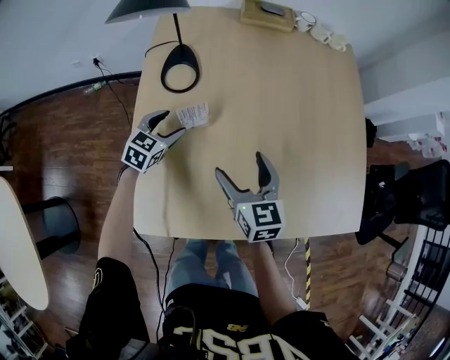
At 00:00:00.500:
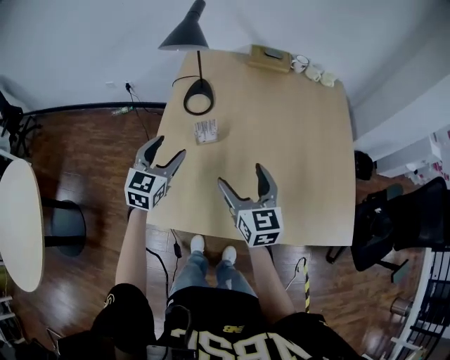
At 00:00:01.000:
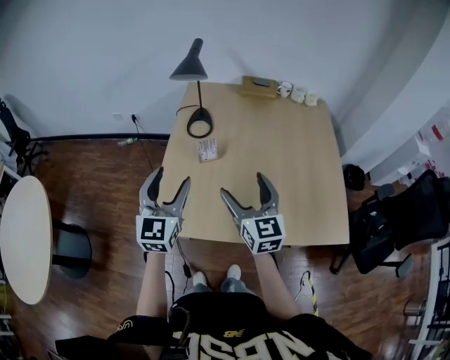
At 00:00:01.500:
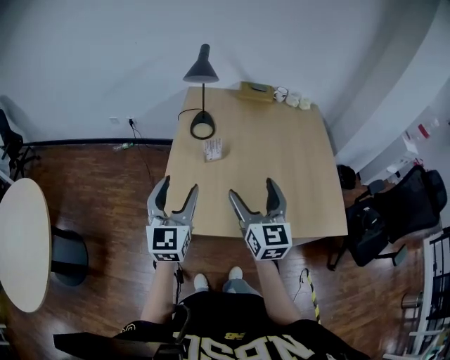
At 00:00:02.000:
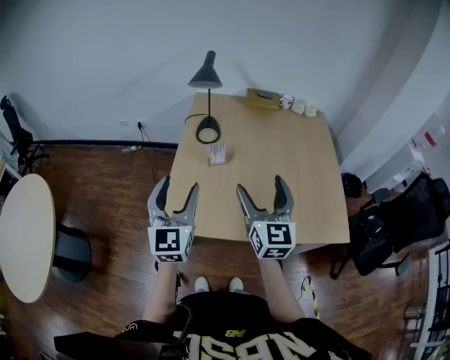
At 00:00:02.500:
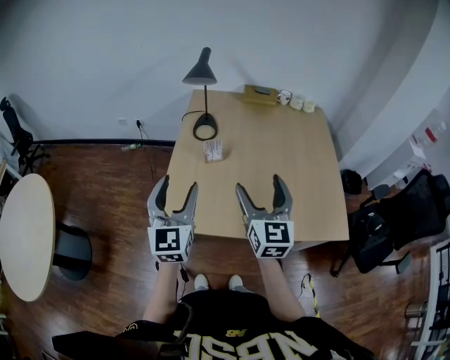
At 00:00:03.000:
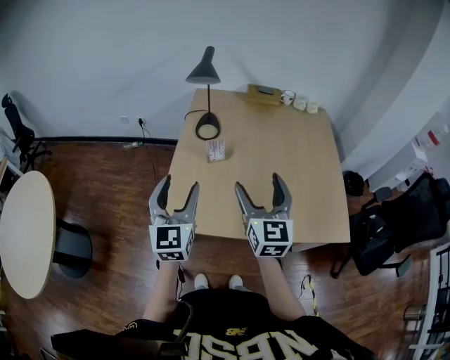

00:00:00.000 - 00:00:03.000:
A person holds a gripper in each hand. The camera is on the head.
00:00:00.000 - 00:00:01.500: The right gripper moves upward and backward, some 30 cm, and rotates approximately 20 degrees, while the left gripper moves backward and upward, approximately 50 cm, and angles its fingers upward, by some 40 degrees.
00:00:01.500 - 00:00:03.000: The grippers move only a little.

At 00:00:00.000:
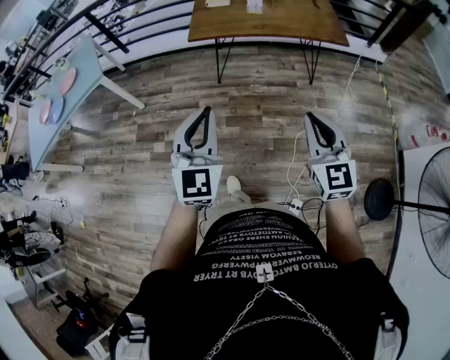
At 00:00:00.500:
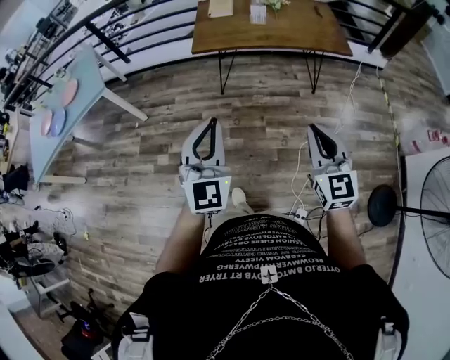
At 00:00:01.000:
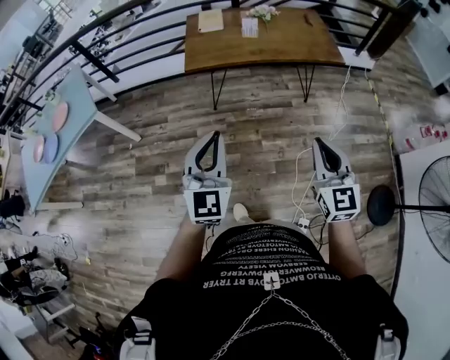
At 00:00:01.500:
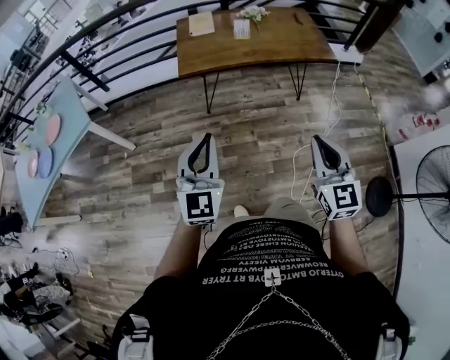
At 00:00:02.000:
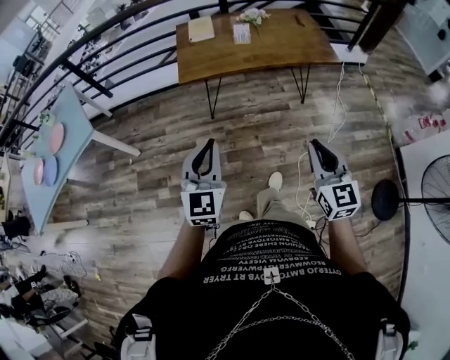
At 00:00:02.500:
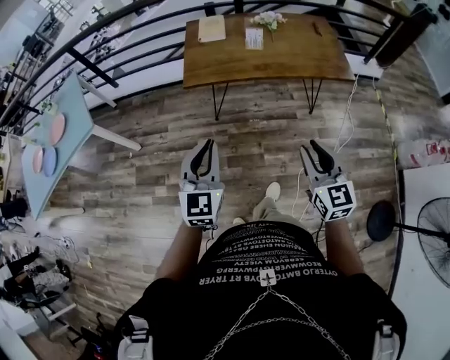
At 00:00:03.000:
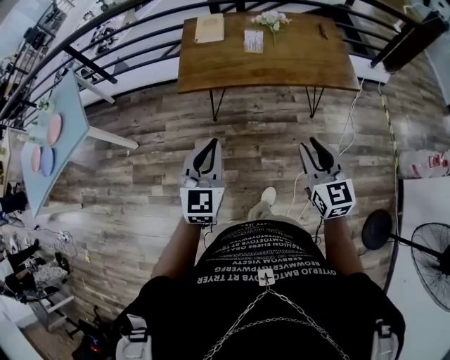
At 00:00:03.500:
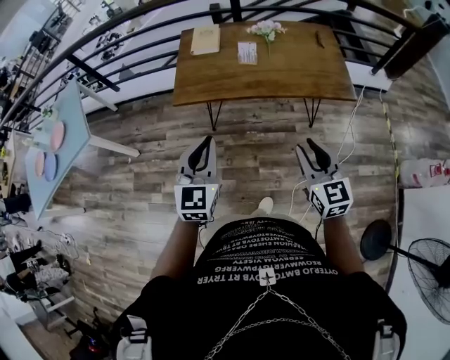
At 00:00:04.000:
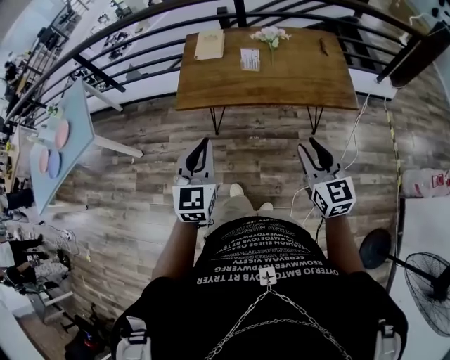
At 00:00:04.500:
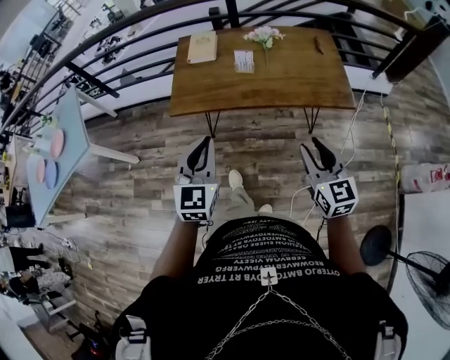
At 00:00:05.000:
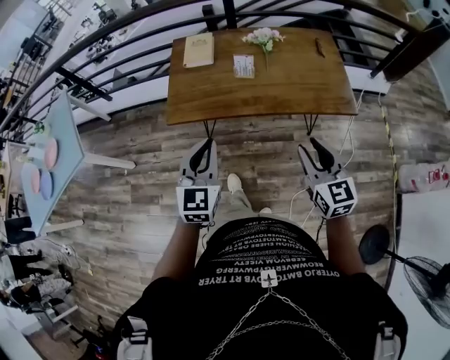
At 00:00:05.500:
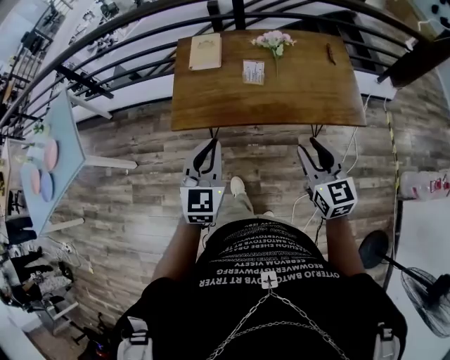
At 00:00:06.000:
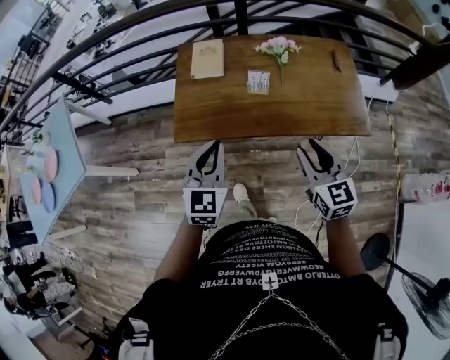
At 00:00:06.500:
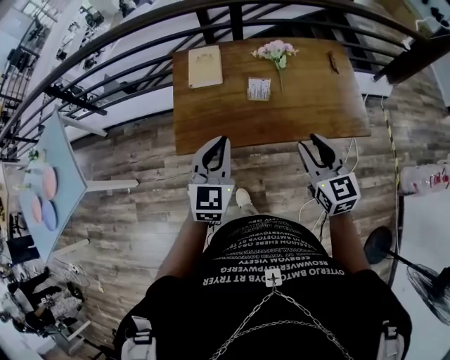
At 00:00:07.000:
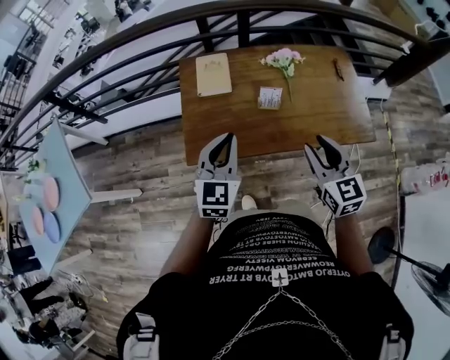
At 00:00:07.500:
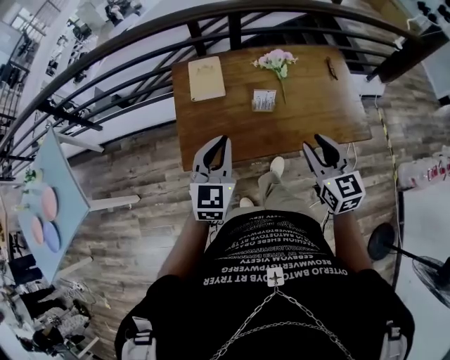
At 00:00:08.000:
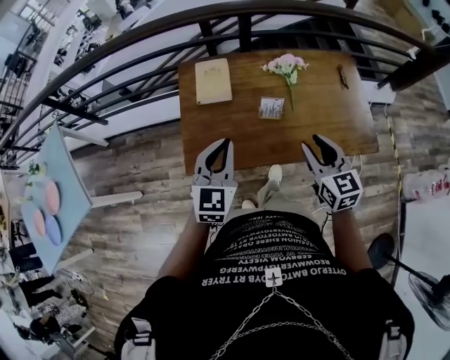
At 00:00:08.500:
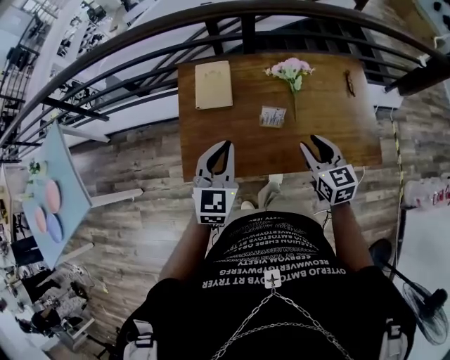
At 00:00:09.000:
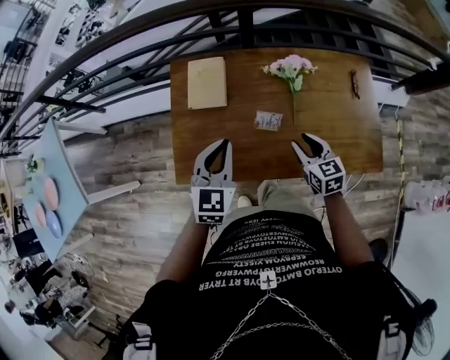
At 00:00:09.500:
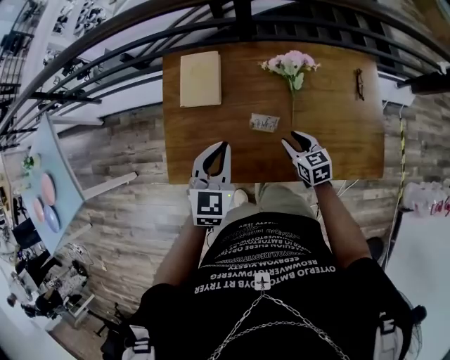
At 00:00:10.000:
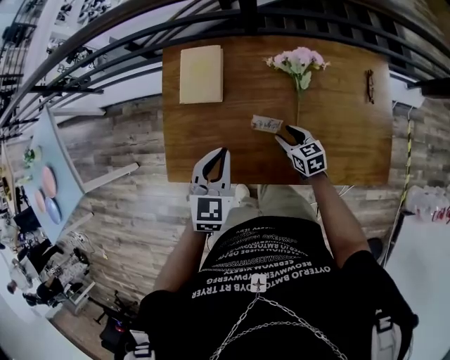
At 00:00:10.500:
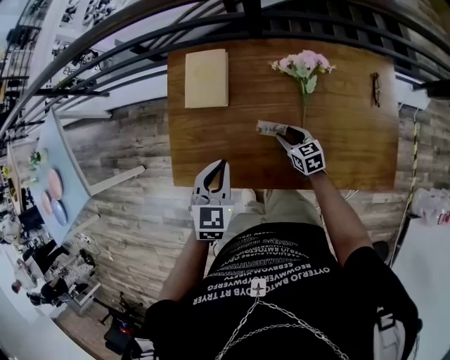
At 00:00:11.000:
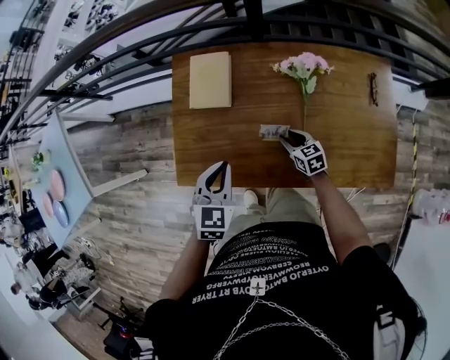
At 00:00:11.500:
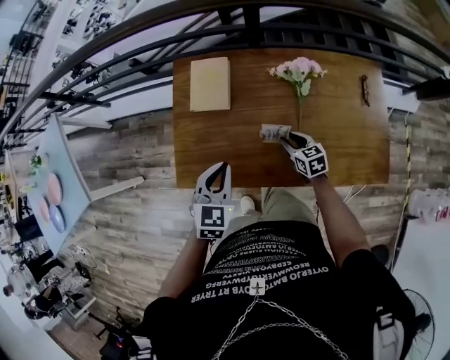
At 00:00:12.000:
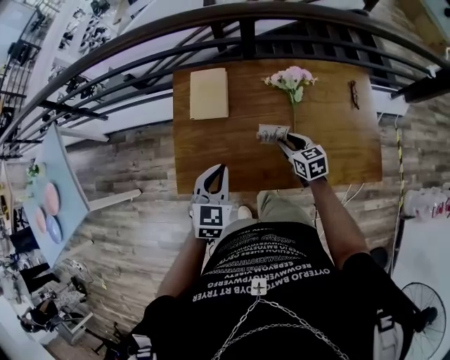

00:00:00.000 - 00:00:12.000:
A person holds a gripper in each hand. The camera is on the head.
00:00:00.000 - 00:00:02.000: The two grippers go roughly 15 cm forward.
00:00:02.000 - 00:00:04.000: Both grippers travel together forward and to the right, approximately 25 cm. The right gripper opens its fingers.
00:00:04.000 - 00:00:06.000: Both grippers travel together forward, about 20 cm.
00:00:06.000 - 00:00:08.000: The two grippers go approximately 15 cm forward.
00:00:08.000 - 00:00:10.000: The left gripper heads downward, forward and to the right, covering about 20 cm; the right gripper heads downward and forward, covering about 35 cm, and swivels roughly 30 degrees.
00:00:10.000 - 00:00:12.000: The left gripper heads to the left, covering approximately 5 cm. Meanwhile the right gripper shifts some 10 cm upward.

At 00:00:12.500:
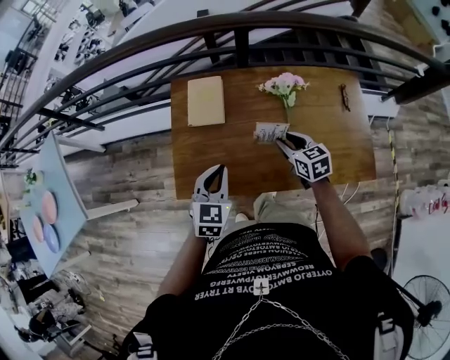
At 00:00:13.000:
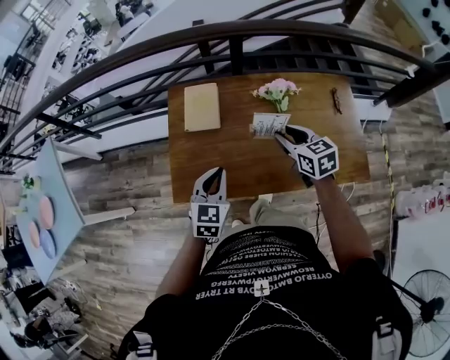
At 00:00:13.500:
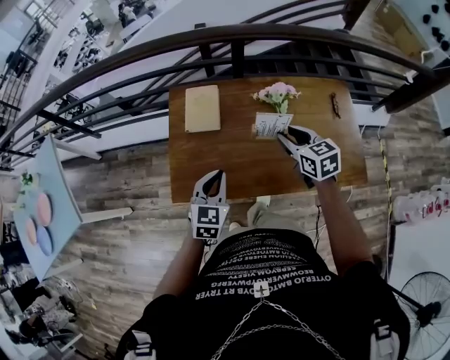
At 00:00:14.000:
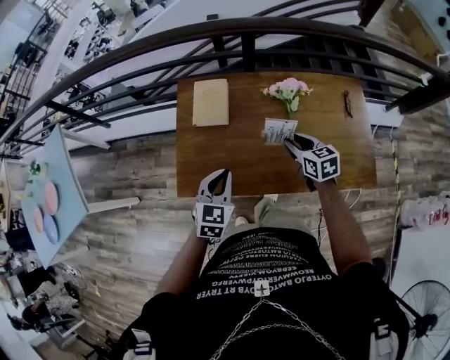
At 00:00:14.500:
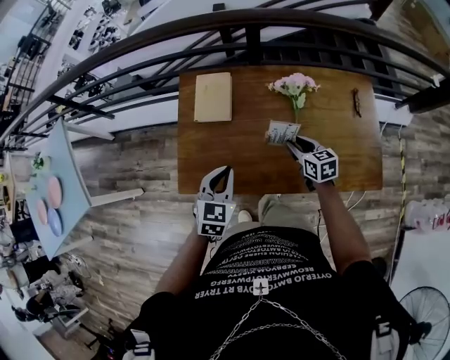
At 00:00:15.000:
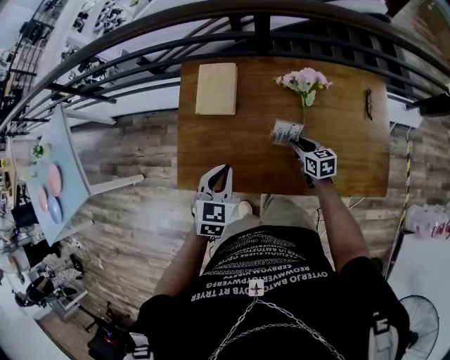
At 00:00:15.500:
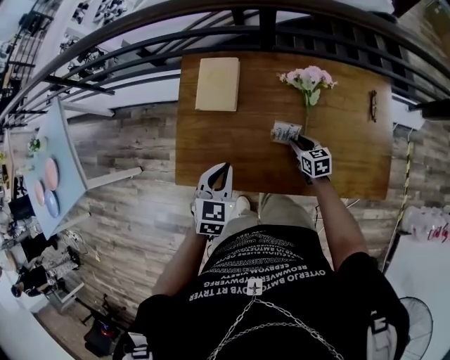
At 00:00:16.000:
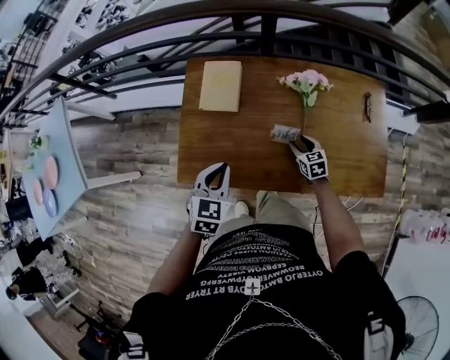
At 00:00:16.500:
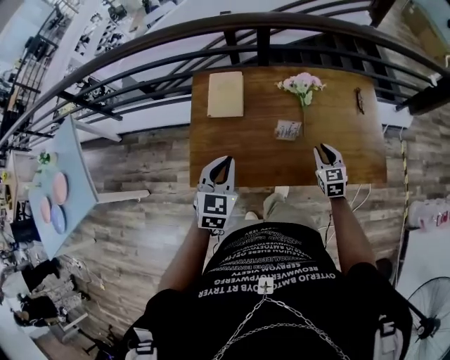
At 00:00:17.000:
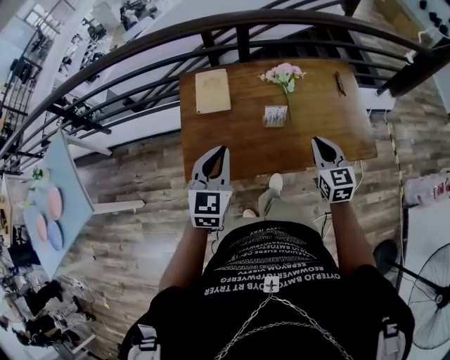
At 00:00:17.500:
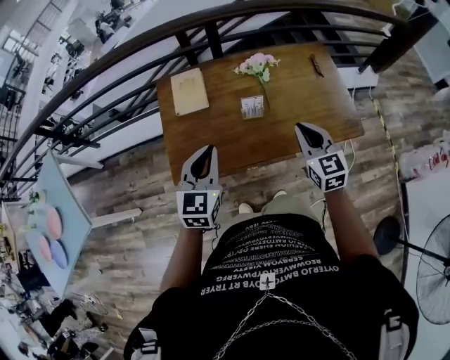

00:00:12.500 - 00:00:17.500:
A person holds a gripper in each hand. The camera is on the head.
00:00:12.500 - 00:00:15.000: The right gripper shifts roughly 15 cm downward.
00:00:15.000 - 00:00:17.500: The right gripper goes about 30 cm upward and backward, rotates some 40 degrees, and closes its fingers, while the left gripper moves upward and backward, roughly 15 cm, and swivels about 20 degrees.

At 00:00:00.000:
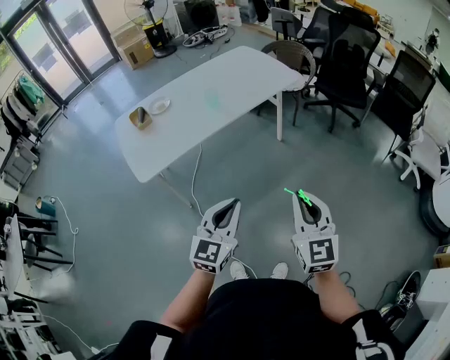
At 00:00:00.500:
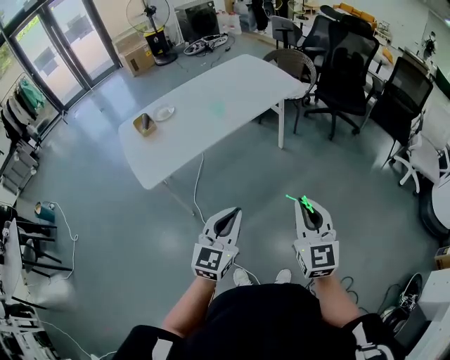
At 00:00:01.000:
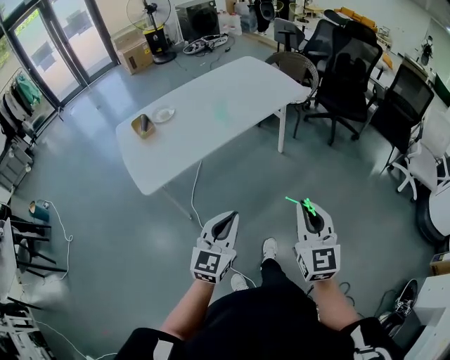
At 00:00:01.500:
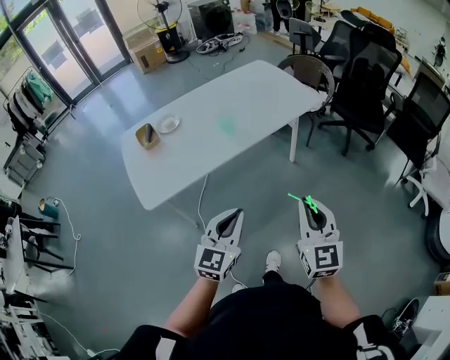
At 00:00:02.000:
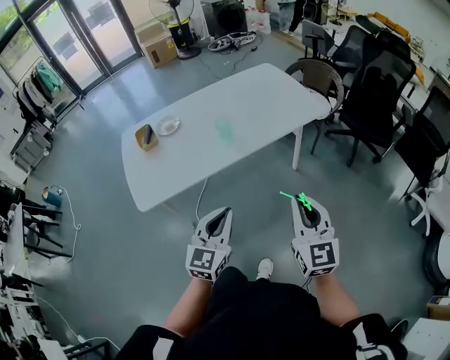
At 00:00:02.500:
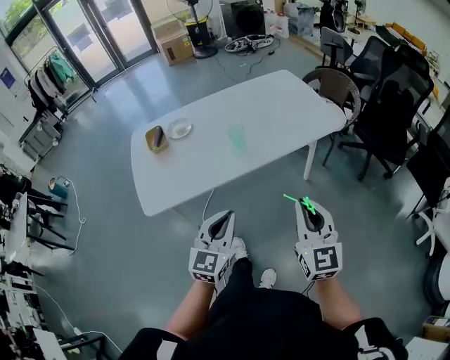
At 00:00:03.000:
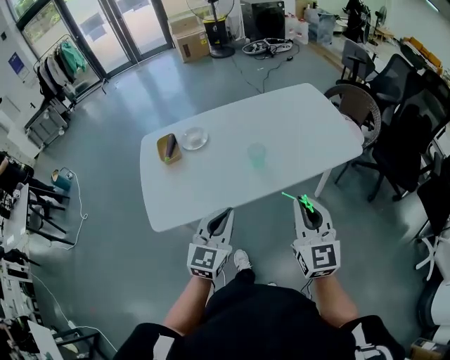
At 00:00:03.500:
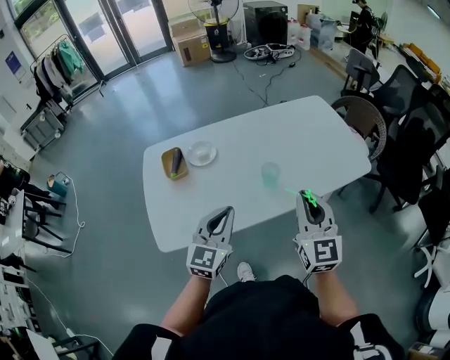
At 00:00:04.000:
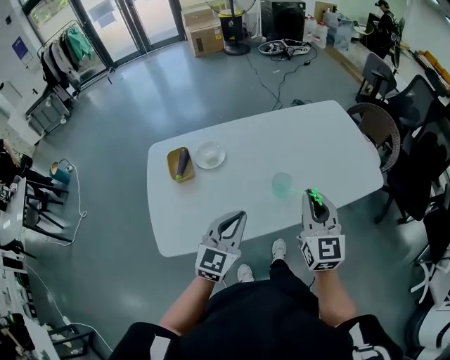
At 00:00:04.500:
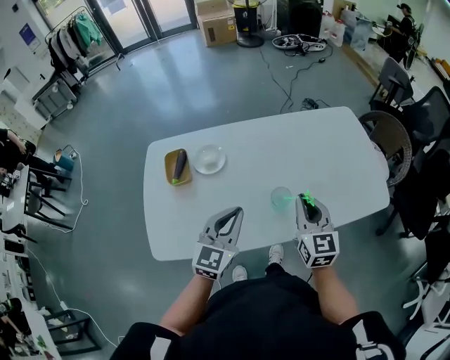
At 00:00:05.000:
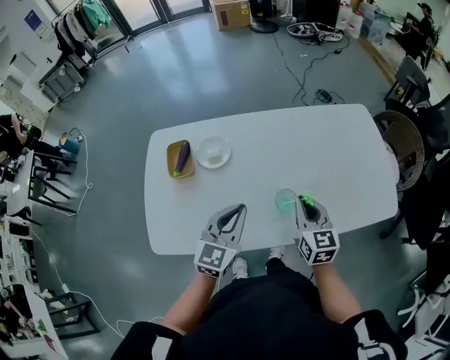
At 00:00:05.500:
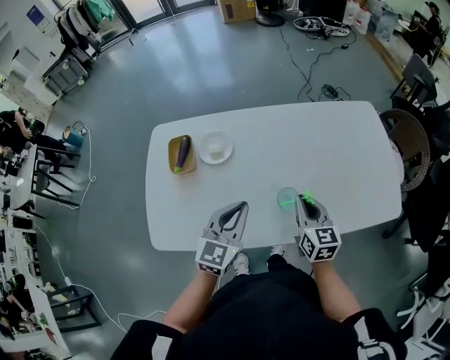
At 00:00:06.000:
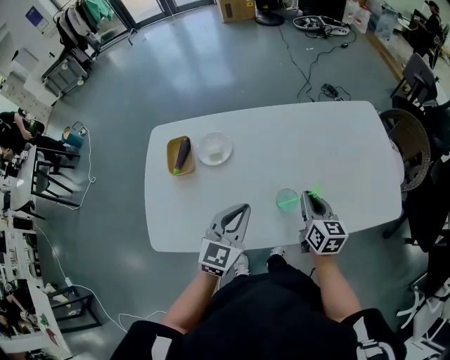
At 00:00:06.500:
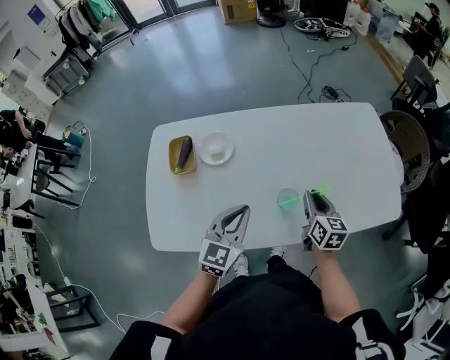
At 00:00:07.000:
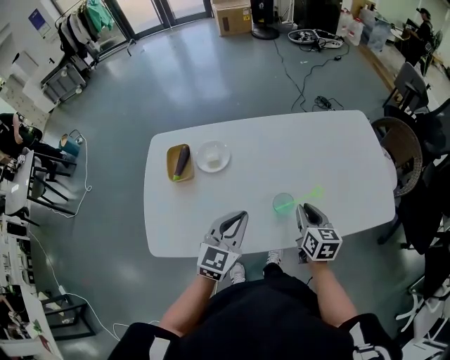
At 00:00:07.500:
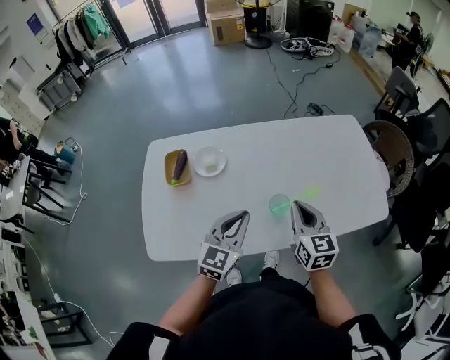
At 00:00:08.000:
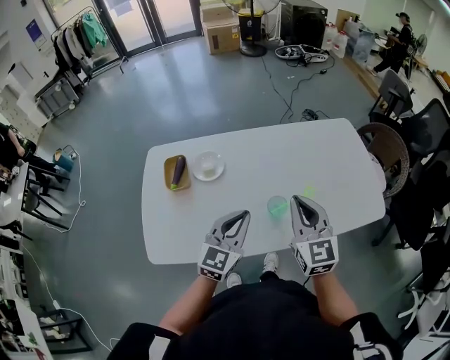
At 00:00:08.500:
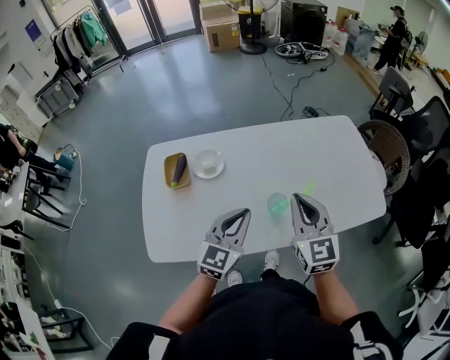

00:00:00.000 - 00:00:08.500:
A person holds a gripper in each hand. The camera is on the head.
00:00:00.000 - 00:00:02.000: Both grippers travel together forward, some 20 cm.
00:00:02.000 - 00:00:04.000: Both grippers travel together forward and to the left, some 35 cm.
00:00:04.000 - 00:00:06.500: The left gripper shifts roughly 10 cm forward and downward; the right gripper heads downward and forward, covering roughly 25 cm, and turns by approximately 40 degrees.
00:00:06.500 - 00:00:08.500: The left gripper goes about 5 cm upward; the right gripper heads upward, covering approximately 20 cm, and swivels roughly 30 degrees.
